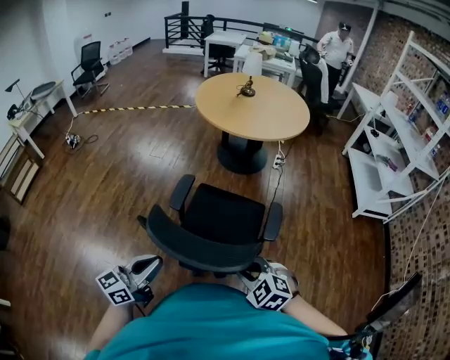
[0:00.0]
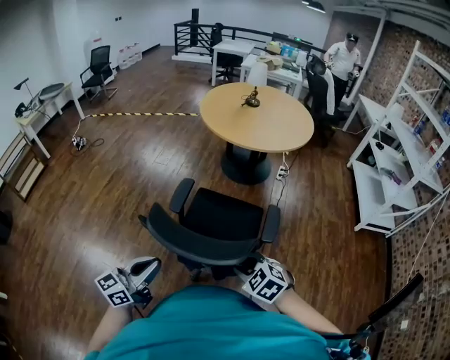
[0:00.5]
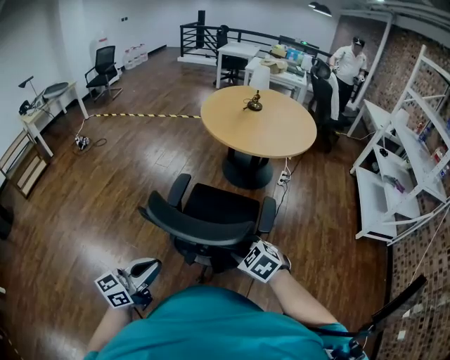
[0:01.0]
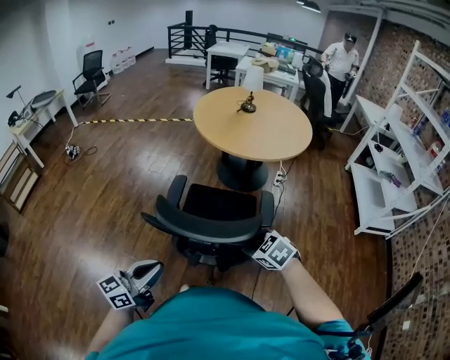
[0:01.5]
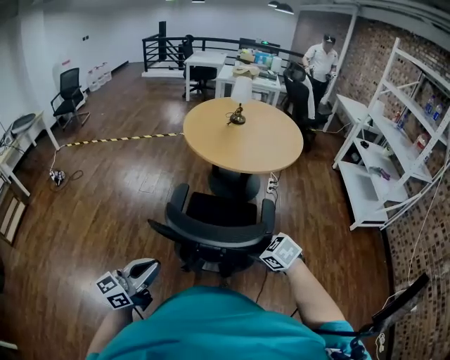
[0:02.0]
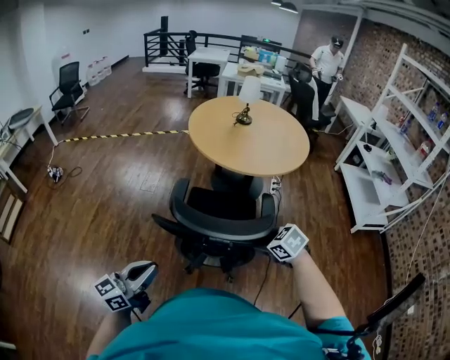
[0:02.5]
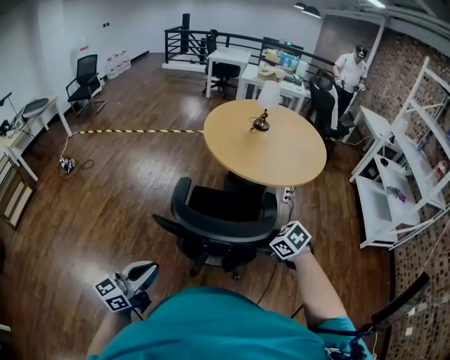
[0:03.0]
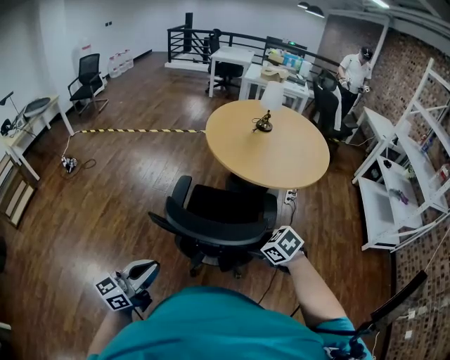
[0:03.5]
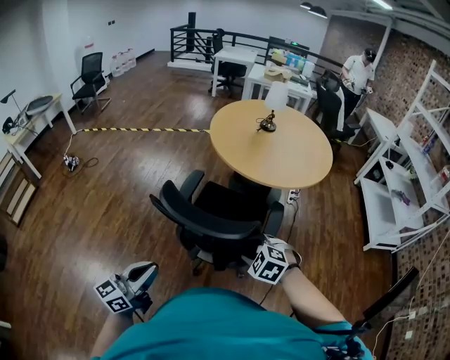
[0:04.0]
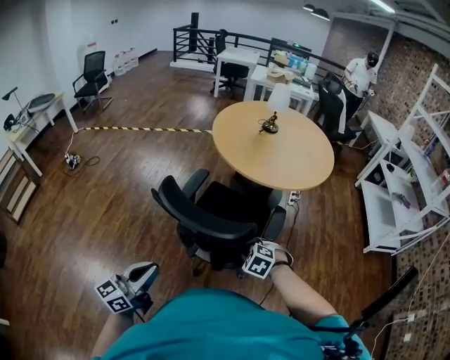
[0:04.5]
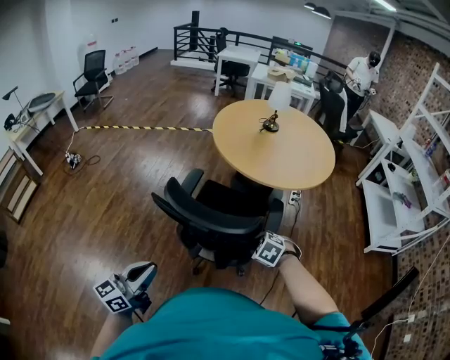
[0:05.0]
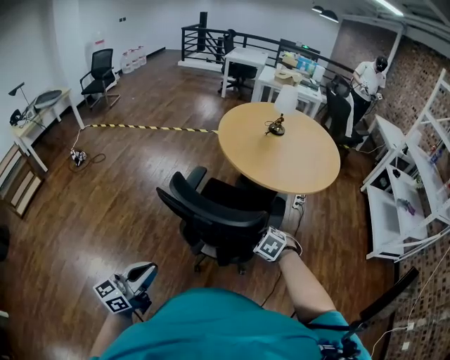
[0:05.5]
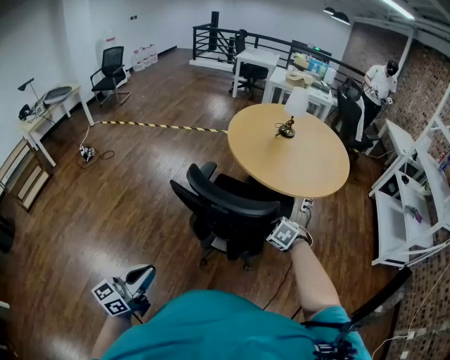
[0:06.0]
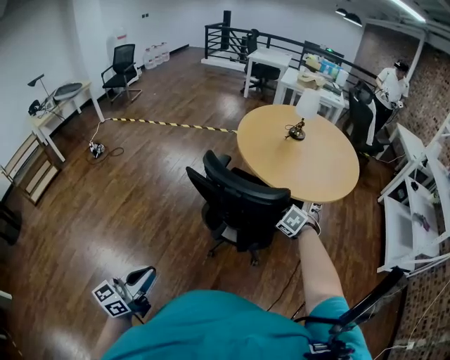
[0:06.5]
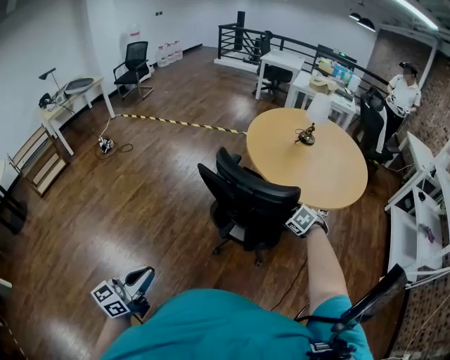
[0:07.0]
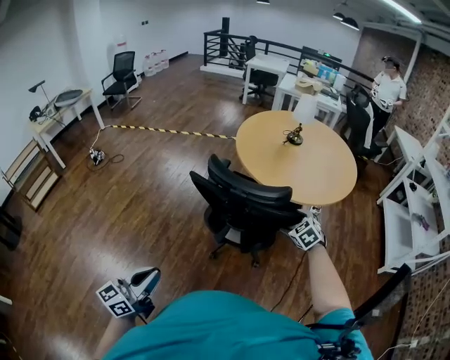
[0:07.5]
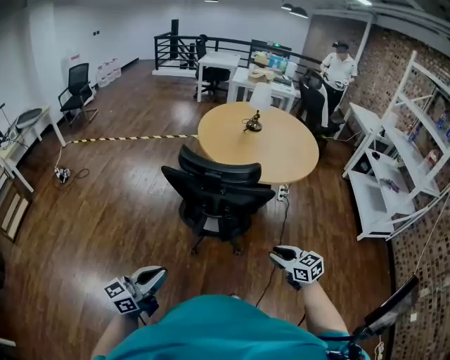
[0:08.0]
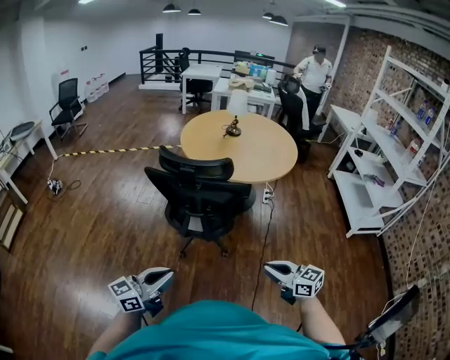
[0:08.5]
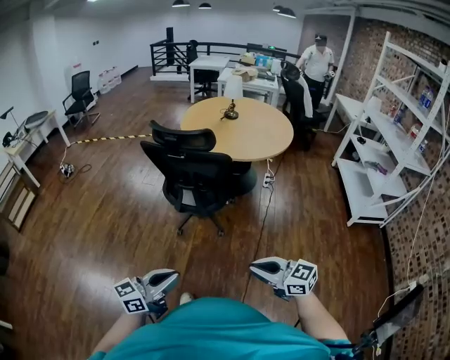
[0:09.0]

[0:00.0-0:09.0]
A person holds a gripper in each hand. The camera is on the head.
0:00.0 to 0:02.0: The right gripper is displaced forward by approximately 25 cm, and rotates approximately 30 degrees; the left gripper travels forward and to the left by about 20 cm.
0:02.0 to 0:04.5: The left gripper goes about 10 cm forward. The right gripper shifts some 20 cm forward, downward and to the left, and swivels approximately 30 degrees.
0:04.5 to 0:07.0: The right gripper heads forward and to the right, covering approximately 25 cm, while the left gripper ends up roughly 5 cm from where it was.
0:07.0 to 0:09.0: The left gripper travels backward and to the right by about 35 cm, and swivels about 30 degrees; the right gripper heads backward, covering some 60 cm, angles its fingers upward, by some 50 degrees, and closes.

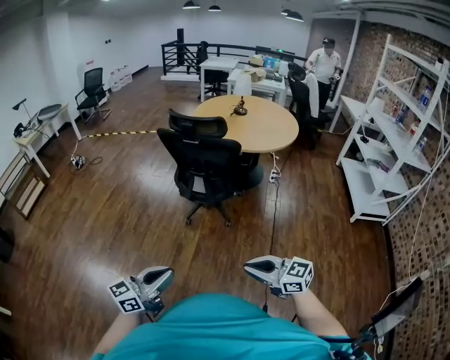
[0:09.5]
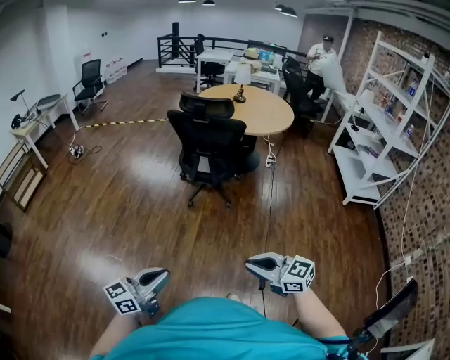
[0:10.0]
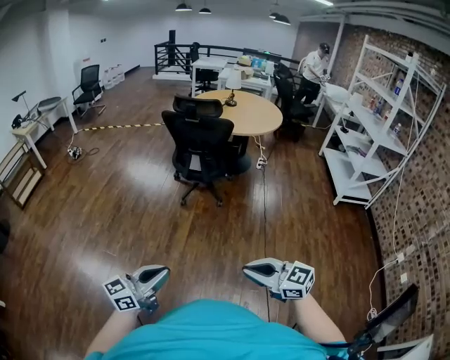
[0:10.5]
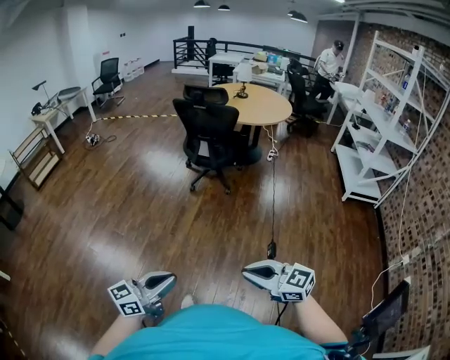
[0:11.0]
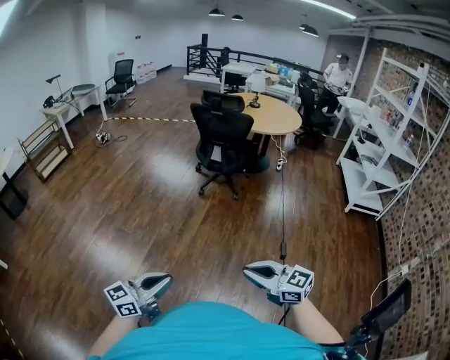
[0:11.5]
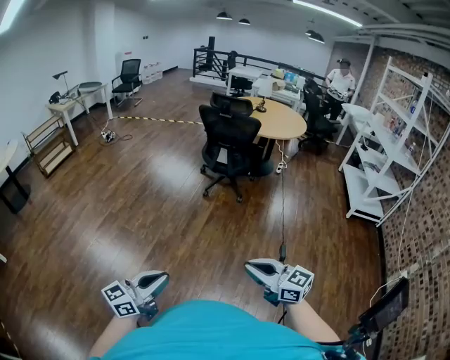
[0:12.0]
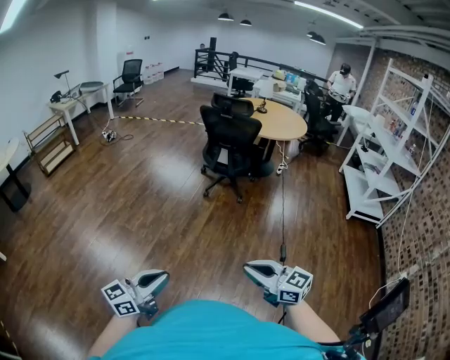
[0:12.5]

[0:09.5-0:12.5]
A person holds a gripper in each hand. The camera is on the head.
0:09.5 to 0:11.0: Both grippers are carried backward, some 40 cm.
0:11.0 to 0:12.5: The grippers both shift to the left and backward by about 15 cm.

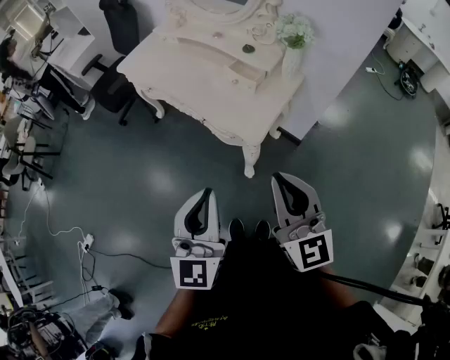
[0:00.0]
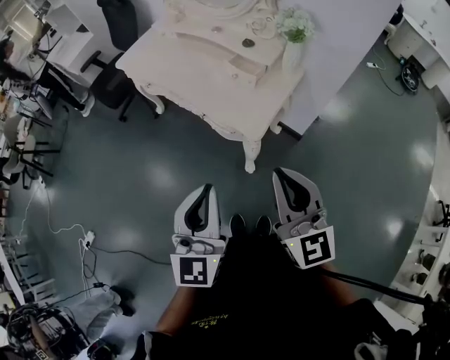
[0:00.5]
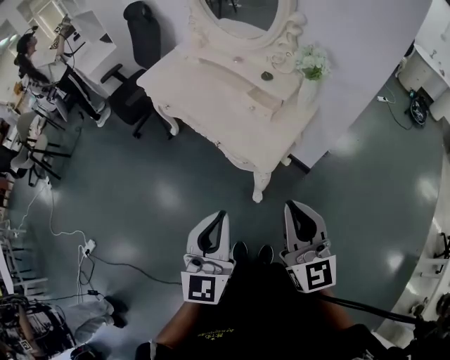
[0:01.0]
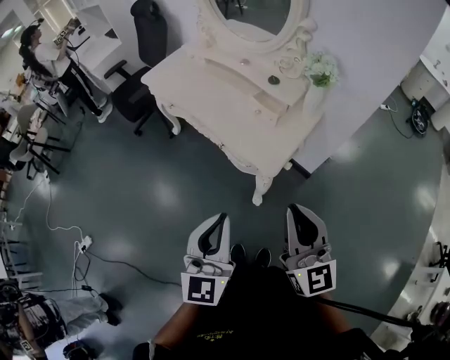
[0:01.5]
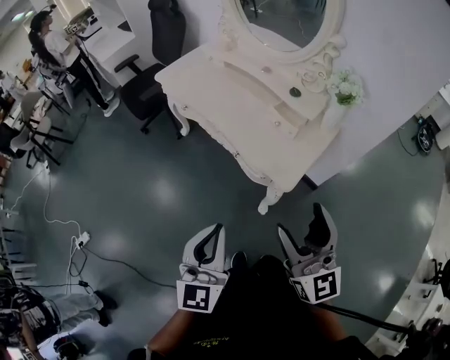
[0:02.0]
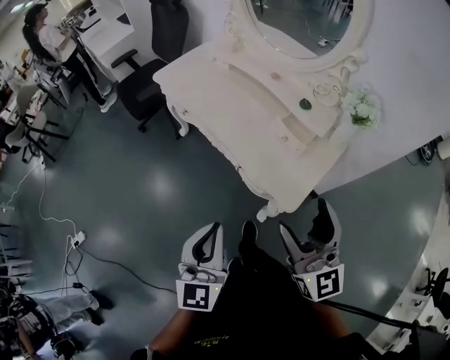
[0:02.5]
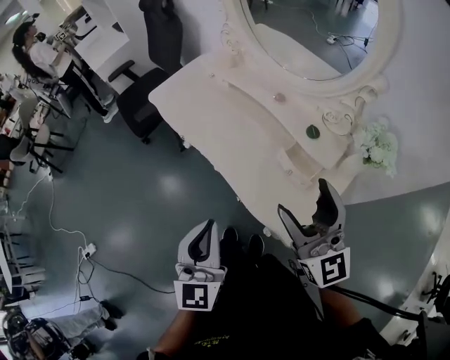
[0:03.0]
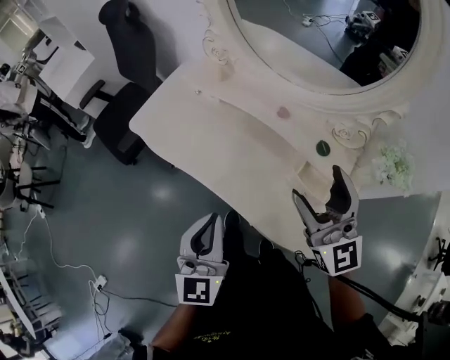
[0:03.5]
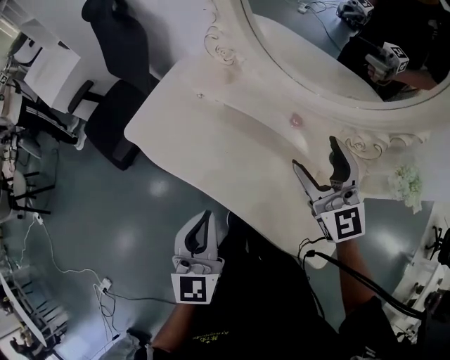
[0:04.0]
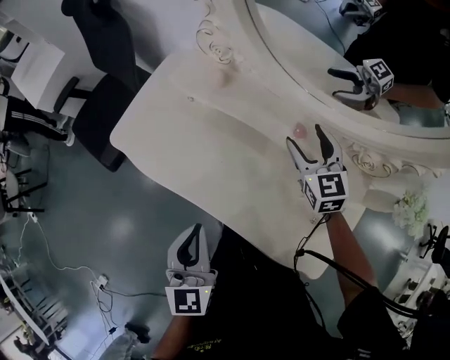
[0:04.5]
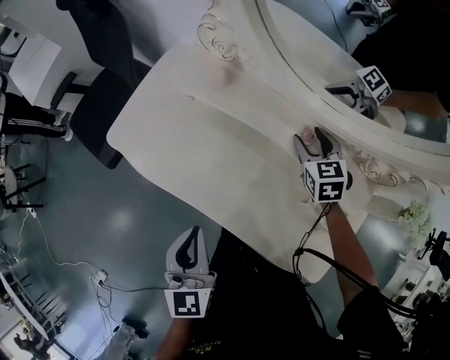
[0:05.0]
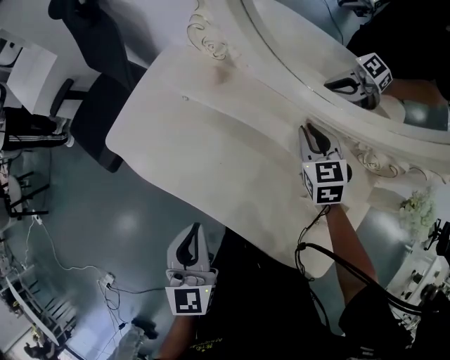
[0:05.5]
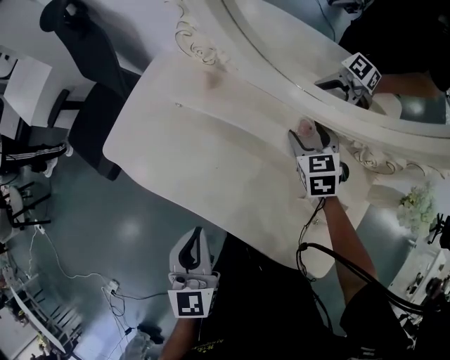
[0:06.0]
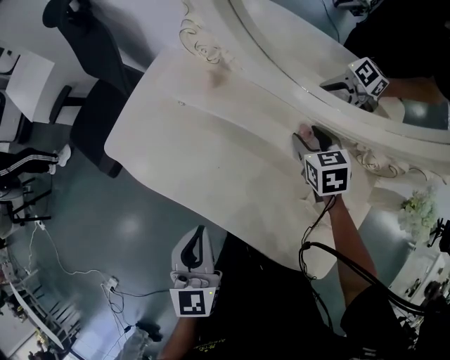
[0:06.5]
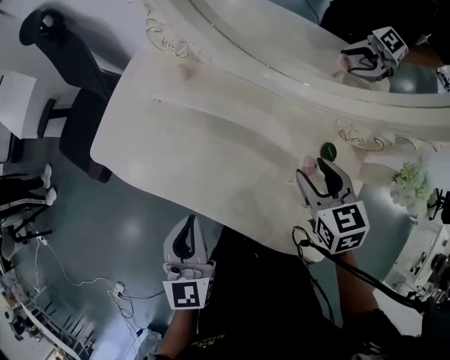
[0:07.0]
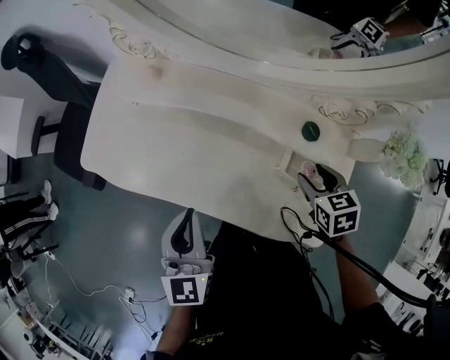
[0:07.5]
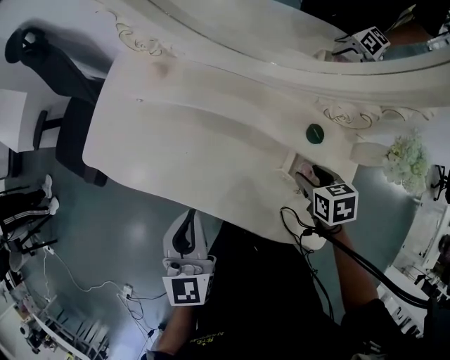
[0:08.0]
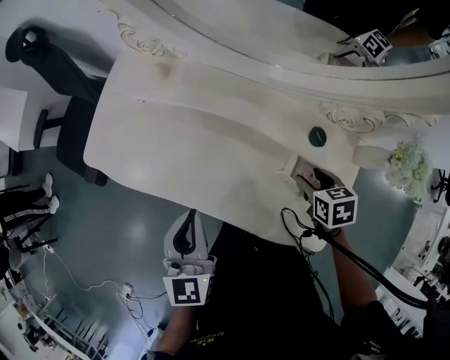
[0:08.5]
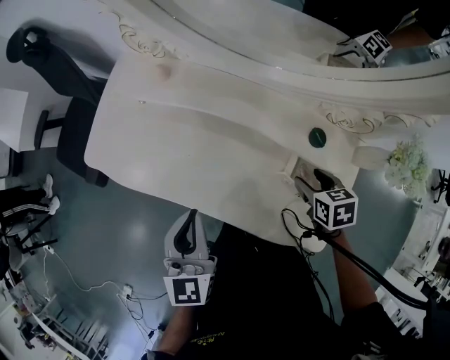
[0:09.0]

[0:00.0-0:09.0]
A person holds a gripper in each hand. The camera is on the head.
0:00.0 to 0:02.0: The right gripper goes approximately 10 cm to the left and forward, and opens its fingers. The left gripper is displaced to the left by roughly 10 cm.
0:02.0 to 0:04.5: The pair of grippers is taken forward, roughly 60 cm. The right gripper tips its fingers downward by about 30 degrees.
0:04.5 to 0:07.0: The right gripper goes about 15 cm backward and to the right, rotates about 20 degrees, and closes and opens again.
0:07.0 to 0:09.0: The right gripper travels downward, backward and to the right by approximately 15 cm, and rotates some 20 degrees.

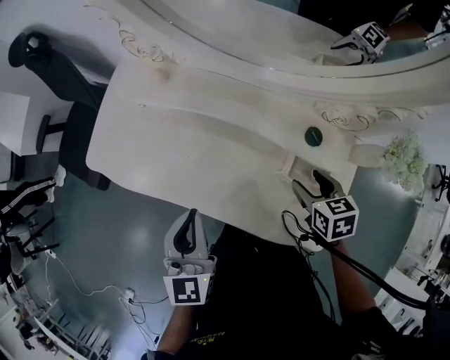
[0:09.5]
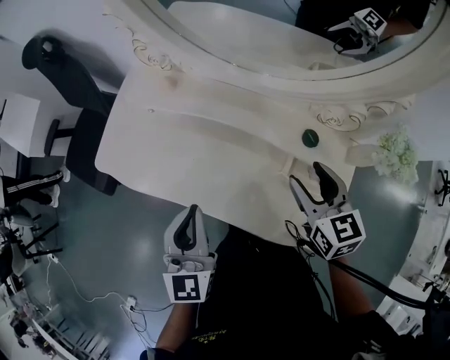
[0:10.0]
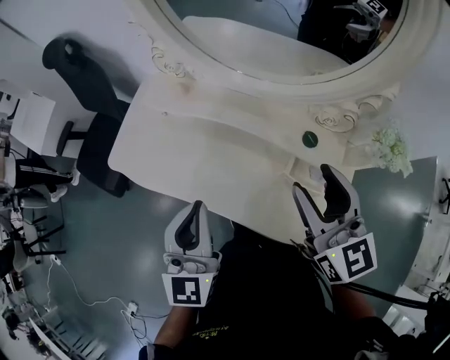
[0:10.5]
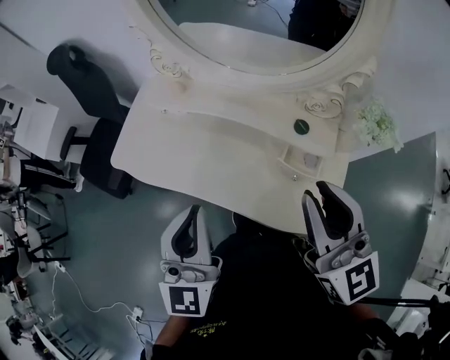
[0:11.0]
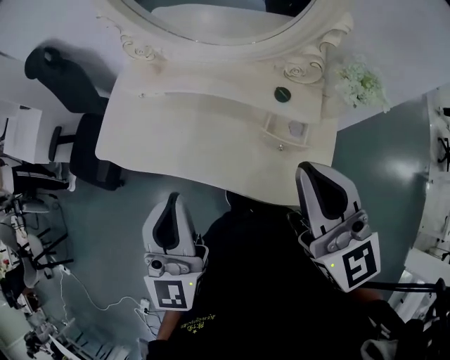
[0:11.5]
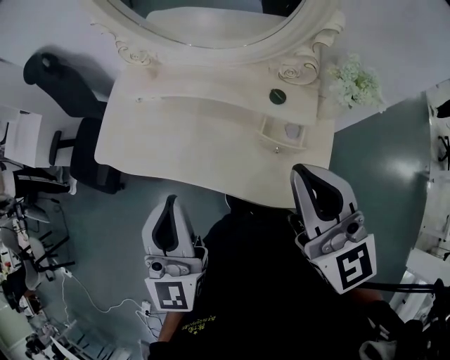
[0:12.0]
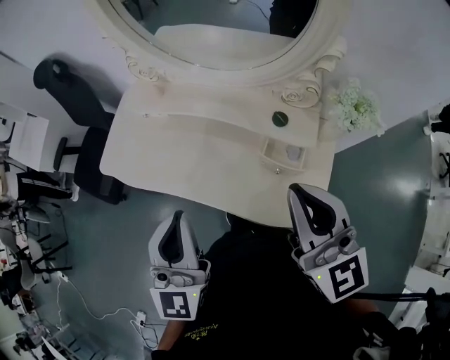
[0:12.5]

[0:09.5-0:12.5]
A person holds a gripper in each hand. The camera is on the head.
0:09.5 to 0:11.0: The left gripper heads upward and backward, covering roughly 20 cm. Meanwhile the right gripper shifts roughly 30 cm upward, angles its fingers upward, by some 50 degrees, and closes up.
0:11.0 to 0:12.5: The grippers move only a little.

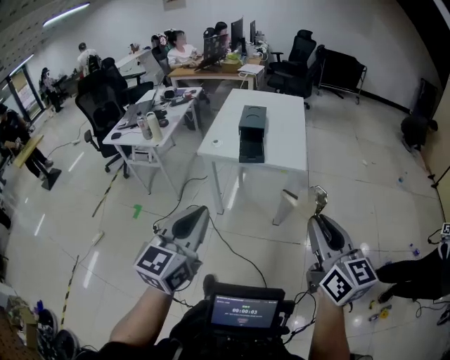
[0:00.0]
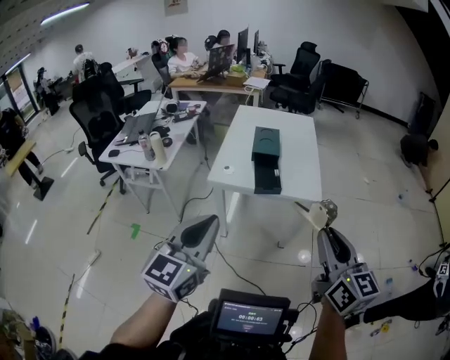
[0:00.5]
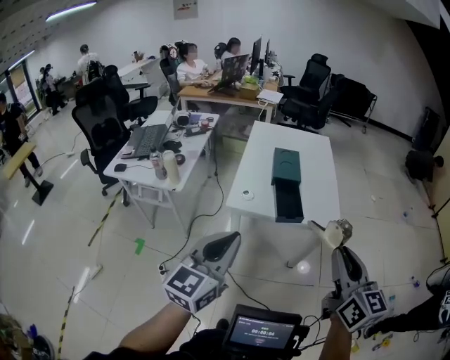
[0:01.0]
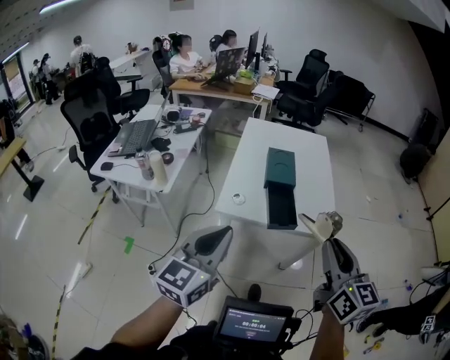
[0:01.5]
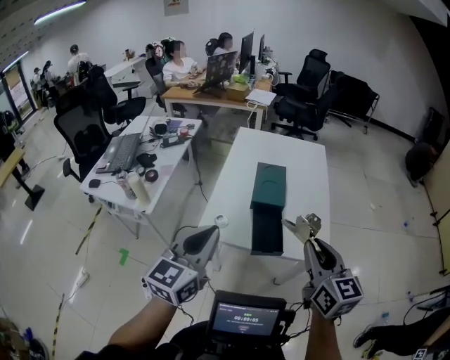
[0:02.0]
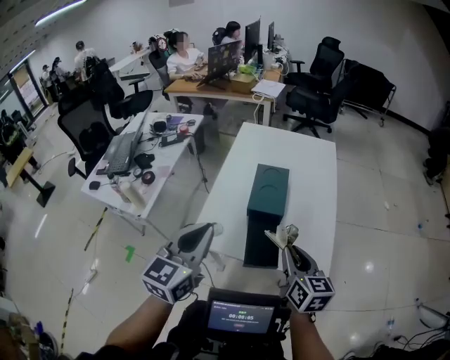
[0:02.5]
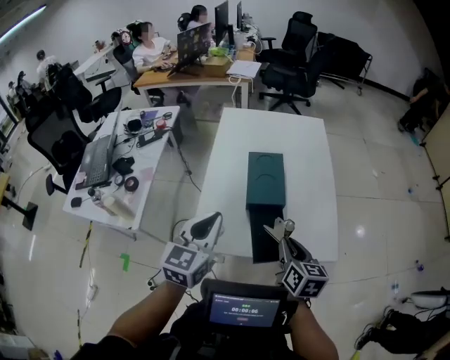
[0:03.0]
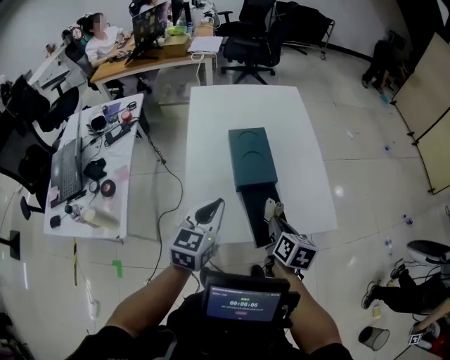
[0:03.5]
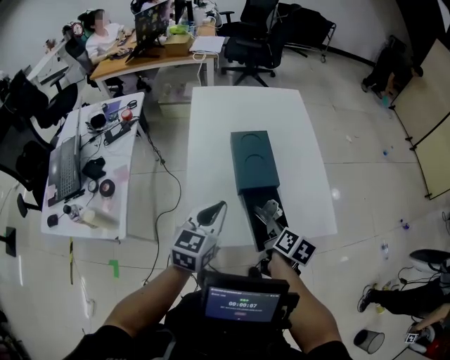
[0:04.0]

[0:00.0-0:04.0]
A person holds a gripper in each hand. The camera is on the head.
0:00.0 to 0:02.0: The pair of grippers is taken forward, about 60 cm.
0:02.0 to 0:04.0: The right gripper moves downward and forward, some 40 cm, and angles its fingers downward, by approximately 30 degrees, while the left gripper shifts approximately 35 cm forward and downward, and changes its angle by some 20 degrees.
